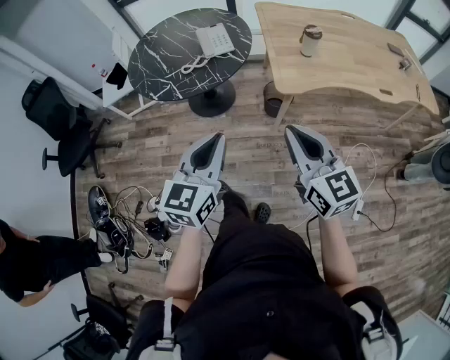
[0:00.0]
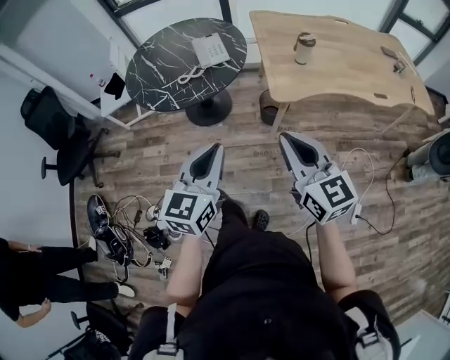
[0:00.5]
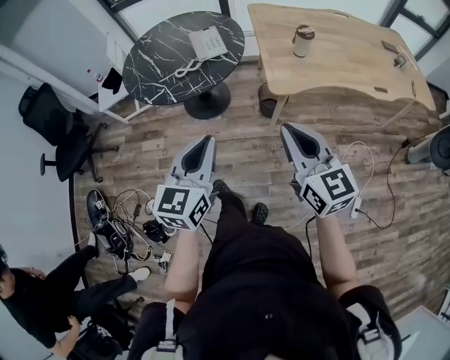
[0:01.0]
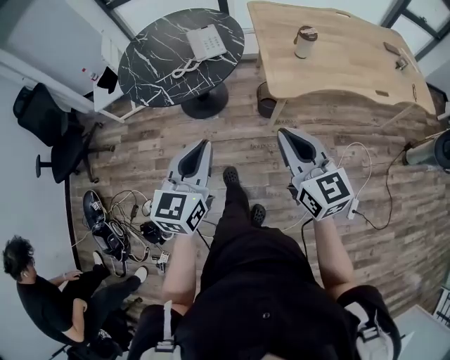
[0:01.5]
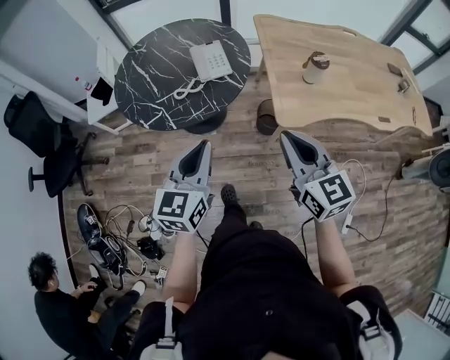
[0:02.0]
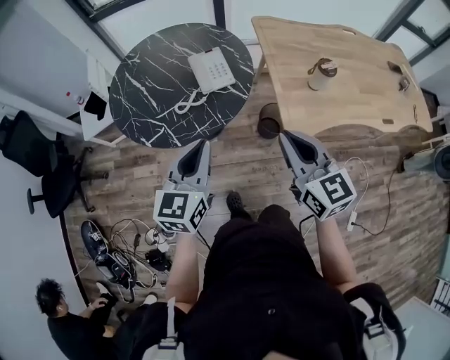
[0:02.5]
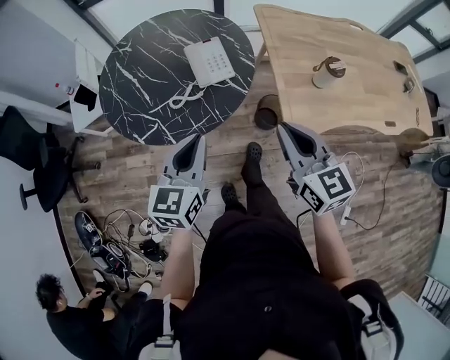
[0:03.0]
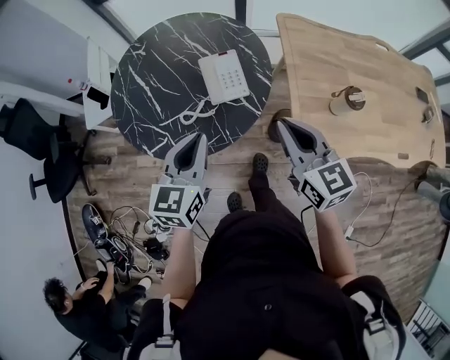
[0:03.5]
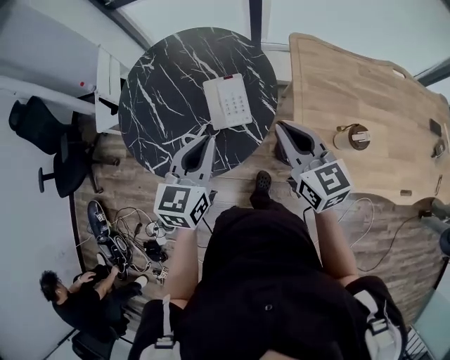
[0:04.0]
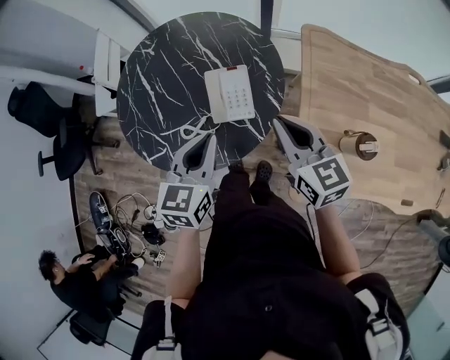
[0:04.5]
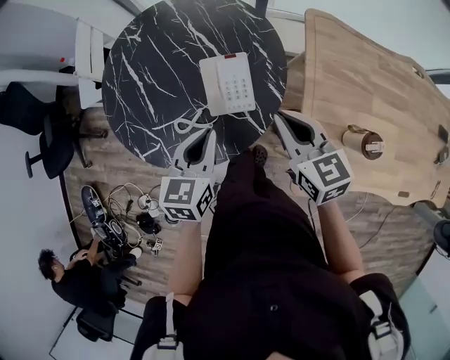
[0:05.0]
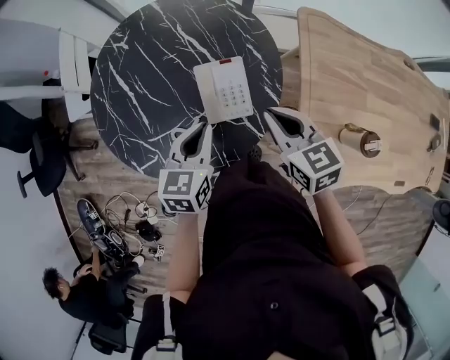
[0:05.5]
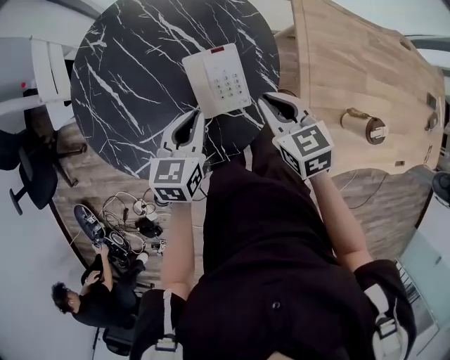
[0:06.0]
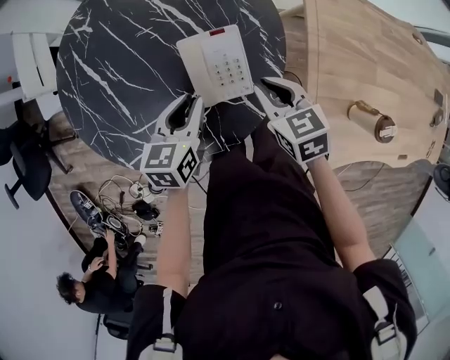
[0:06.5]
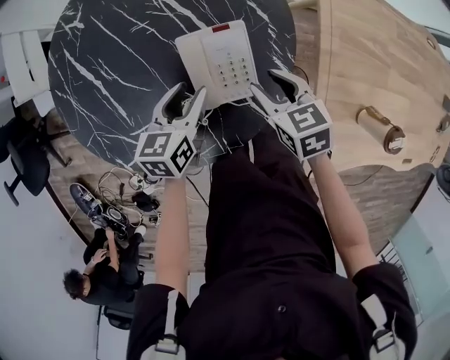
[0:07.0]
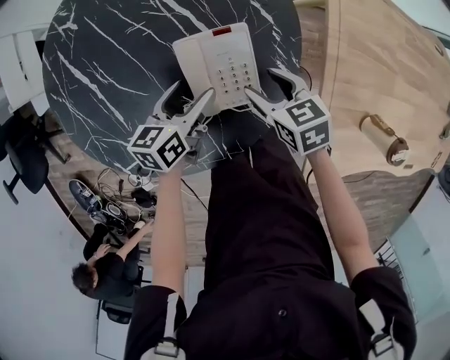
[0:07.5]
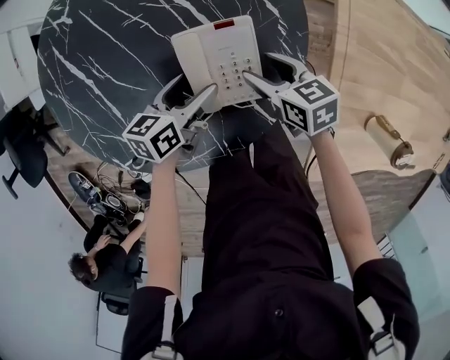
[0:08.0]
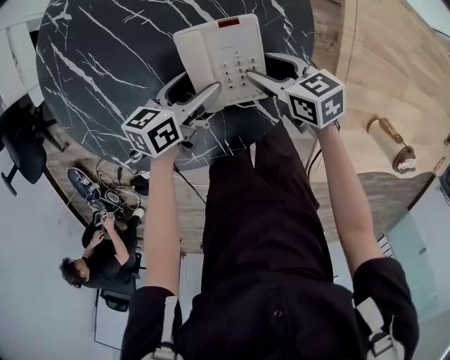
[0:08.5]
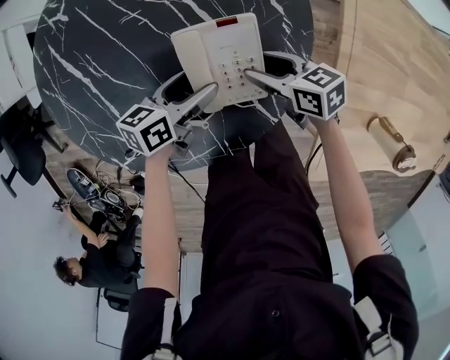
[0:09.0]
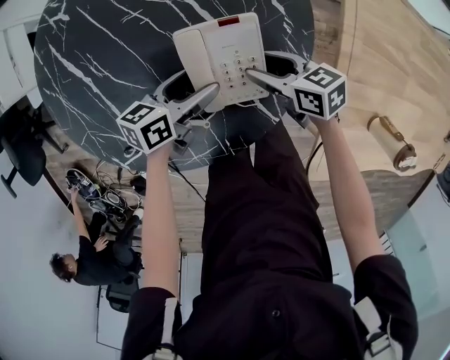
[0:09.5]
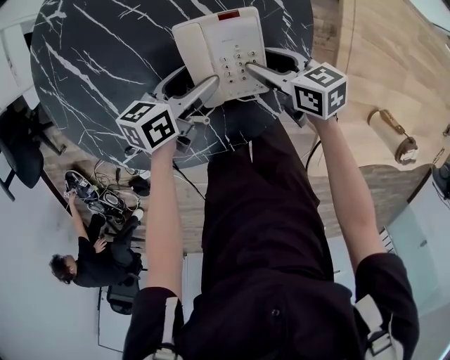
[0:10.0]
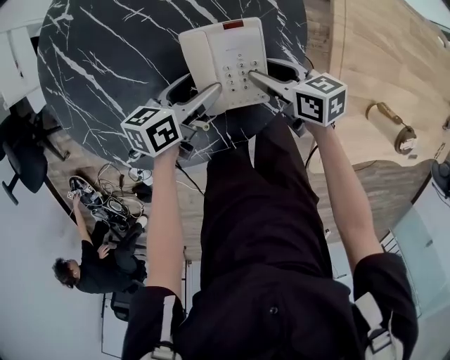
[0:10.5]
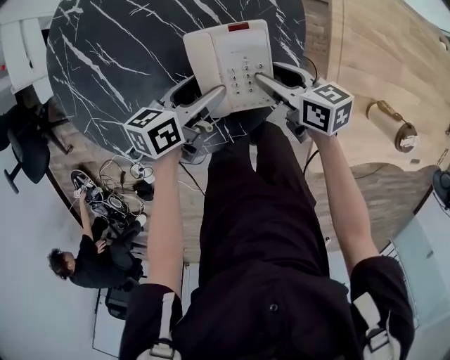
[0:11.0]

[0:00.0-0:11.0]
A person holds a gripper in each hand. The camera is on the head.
0.0 to 2.0 s: The two grippers go approximately 15 cm forward.
2.0 to 3.5 s: The two grippers go about 25 cm forward.
3.5 to 5.5 s: The grippers both shift forward and downward by about 20 cm. The right gripper changes its angle by some 20 degrees.
5.5 to 7.5 s: The left gripper travels downward and forward by approximately 20 cm, rotates about 30 degrees, and opens its fingers. Meanwhile the right gripper moves downward, some 20 cm, changes its angle by approximately 20 degrees, and opens up.
7.5 to 9.0 s: The right gripper ends up roughly 5 cm from where it was, and changes its angle by about 20 degrees.
9.0 to 11.0 s: The left gripper moves roughly 5 cm; the right gripper changes place by about 5 cm.

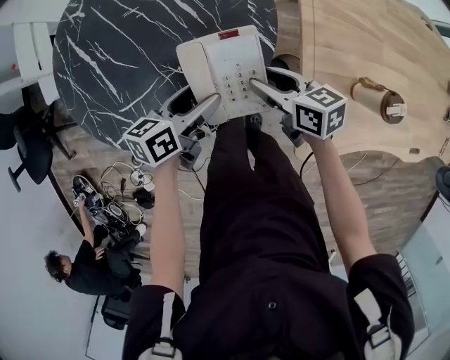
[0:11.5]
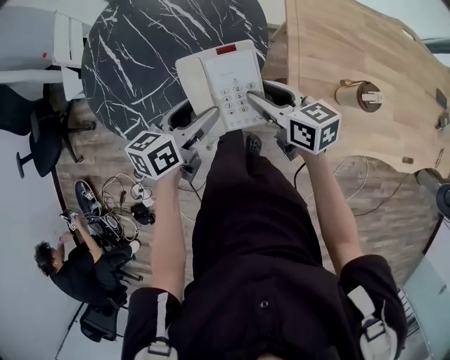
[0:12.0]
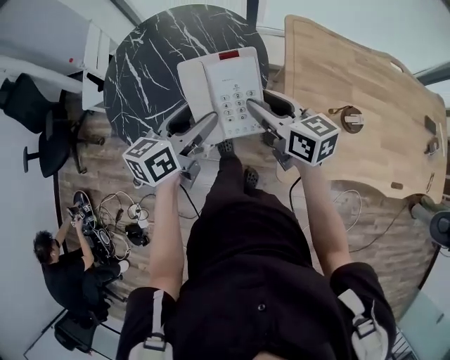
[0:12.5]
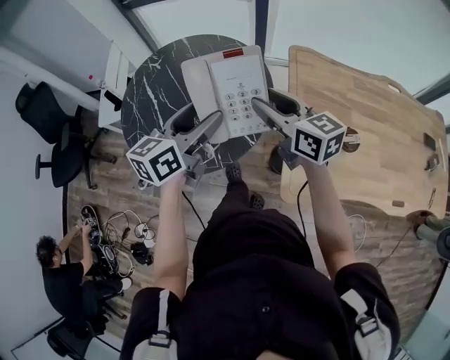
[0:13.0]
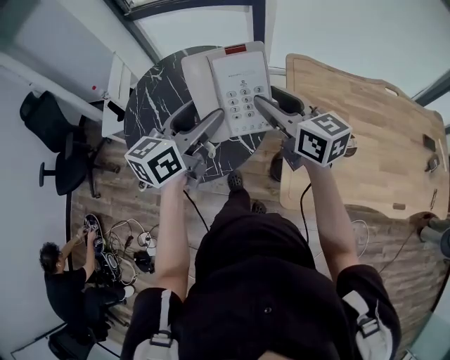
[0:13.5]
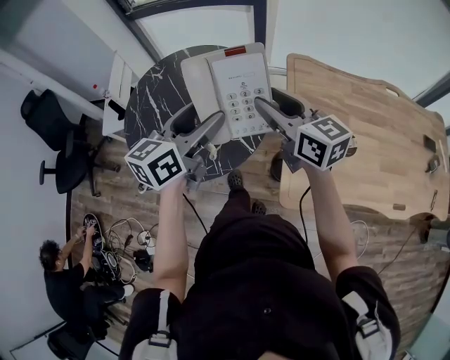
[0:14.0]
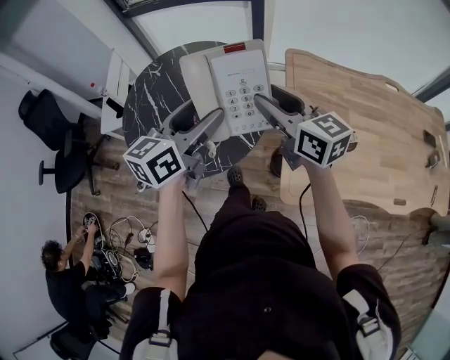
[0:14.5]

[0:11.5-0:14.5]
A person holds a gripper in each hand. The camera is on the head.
11.5 to 13.0 s: The grippers both shift upward by approximately 30 cm. The right gripper turns by roughly 30 degrees. Meanwhile the left gripper rotates approximately 30 degrees.
13.0 to 14.5 s: There are only small adjustments of the grippers.

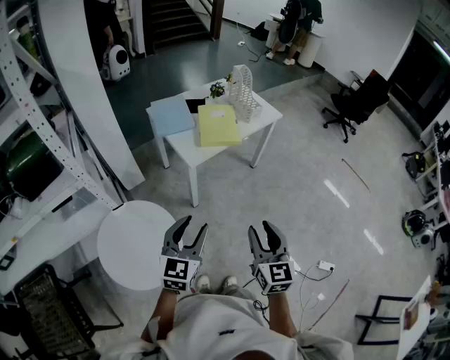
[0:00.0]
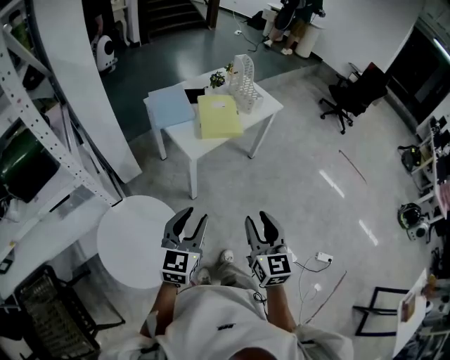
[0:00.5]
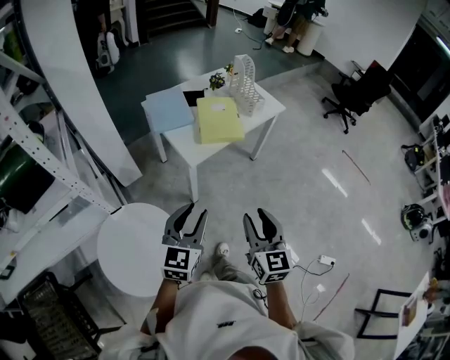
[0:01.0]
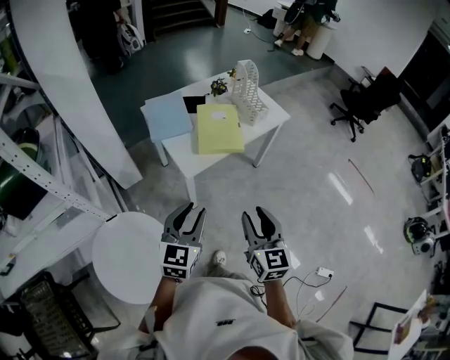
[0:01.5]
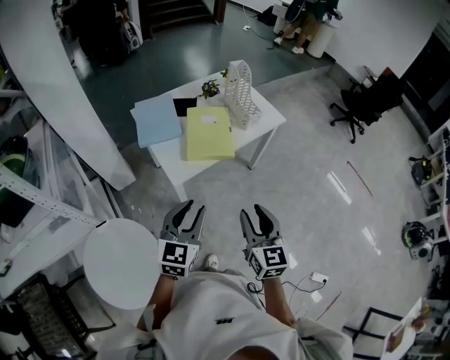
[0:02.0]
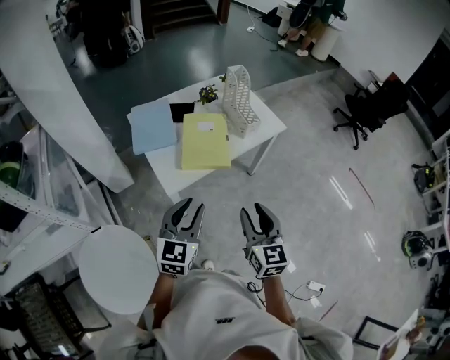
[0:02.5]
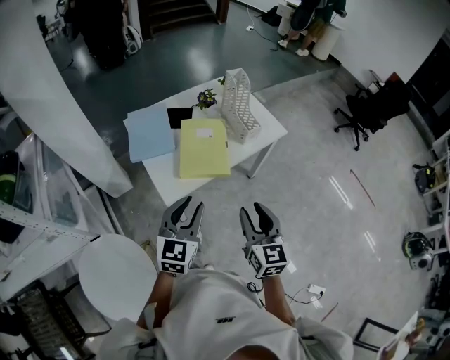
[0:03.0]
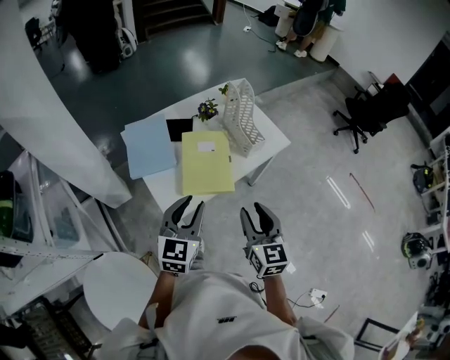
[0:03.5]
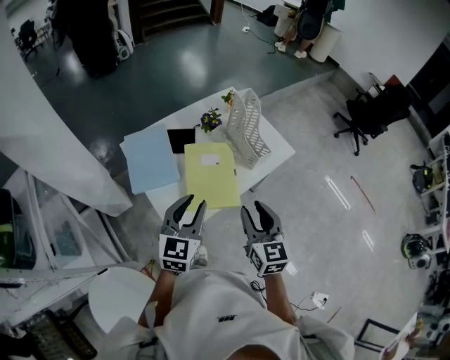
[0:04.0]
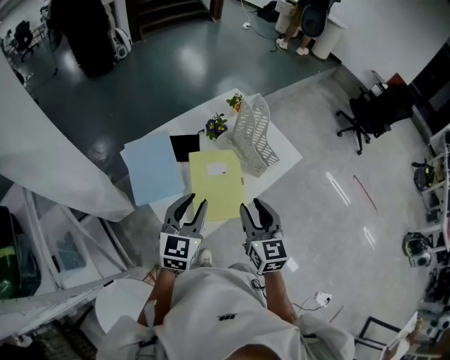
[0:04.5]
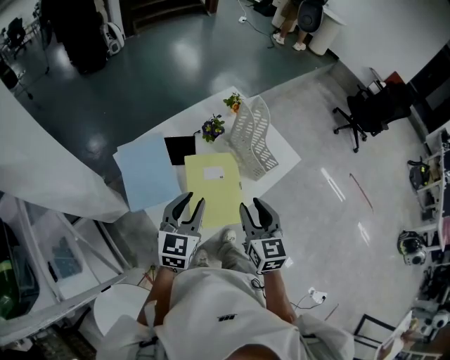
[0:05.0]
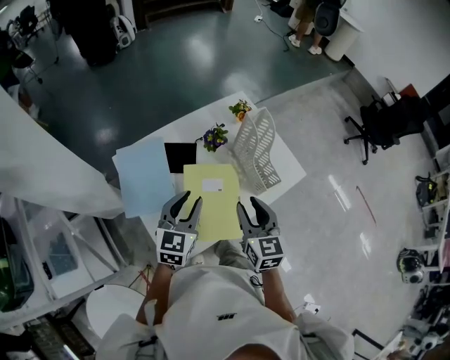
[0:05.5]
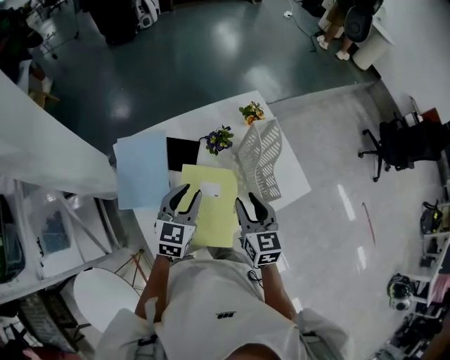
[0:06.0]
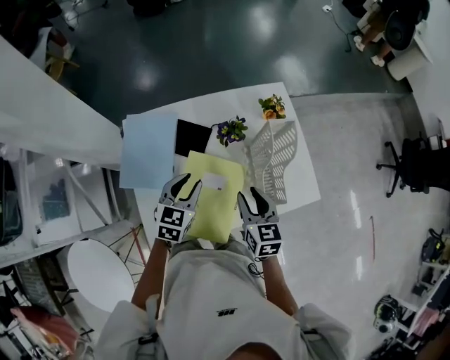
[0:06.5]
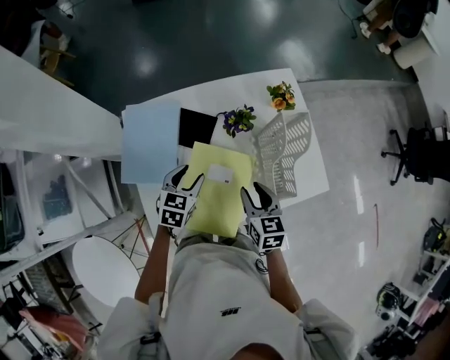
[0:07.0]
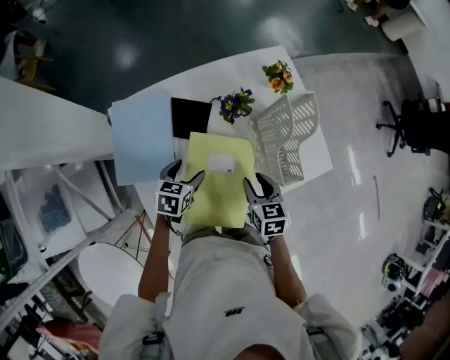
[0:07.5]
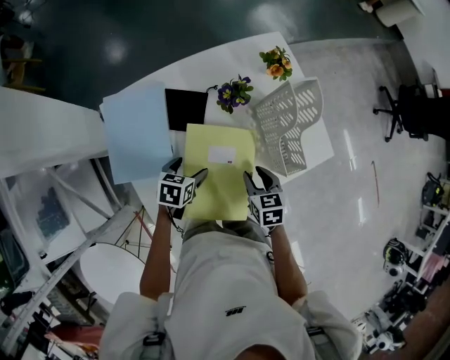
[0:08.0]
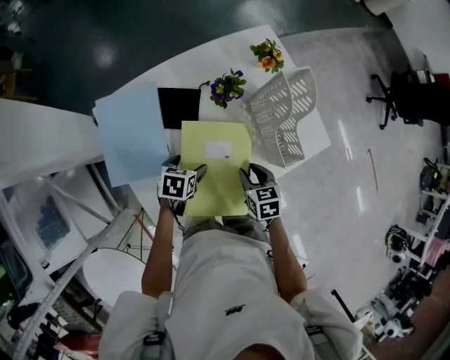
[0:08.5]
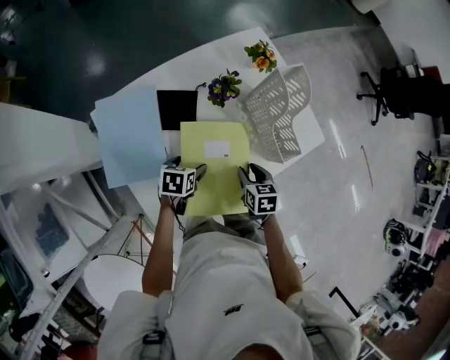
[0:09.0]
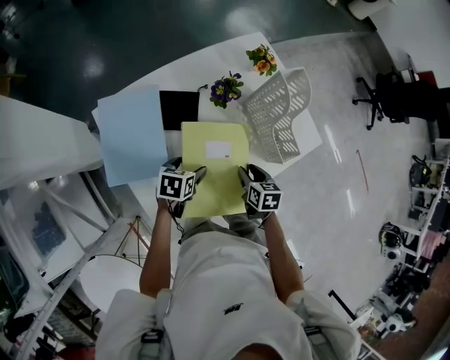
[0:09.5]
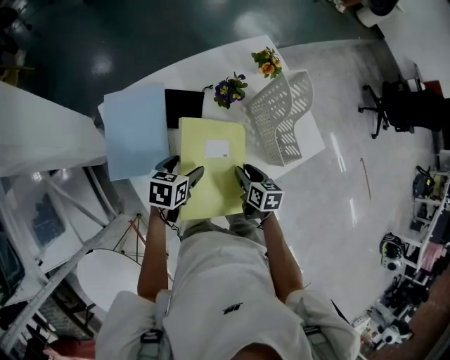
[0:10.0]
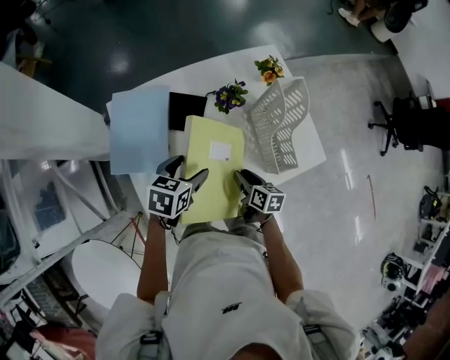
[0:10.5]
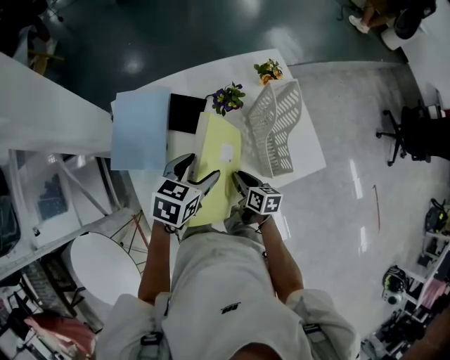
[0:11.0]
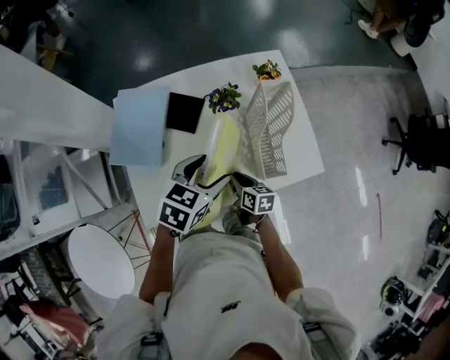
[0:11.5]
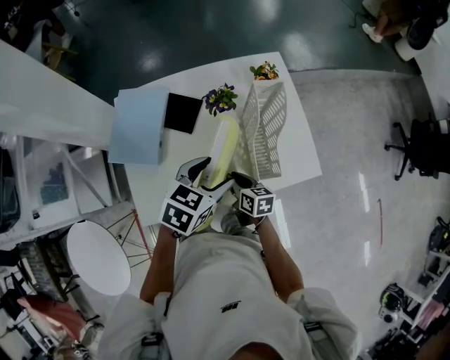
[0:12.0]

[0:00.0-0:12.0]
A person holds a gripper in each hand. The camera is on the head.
0.0 to 2.0 s: The two grippers go about 25 cm forward.
2.0 to 4.0 s: The grippers both shift forward by about 30 cm.
4.0 to 6.0 s: Both grippers travel together forward, some 25 cm.
6.0 to 8.0 s: Both grippers travel together downward, about 20 cm. The left gripper changes its angle by roughly 40 degrees, and opens its fingers. Meanwhile the right gripper rotates roughly 30 degrees.
8.0 to 10.0 s: The right gripper changes its angle by some 20 degrees, while the left gripper goes some 5 cm upward.
10.0 to 12.0 s: The right gripper turns by about 20 degrees, and closes. The left gripper travels to the right and upward by about 25 cm.

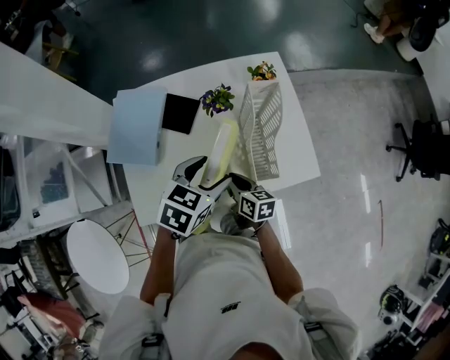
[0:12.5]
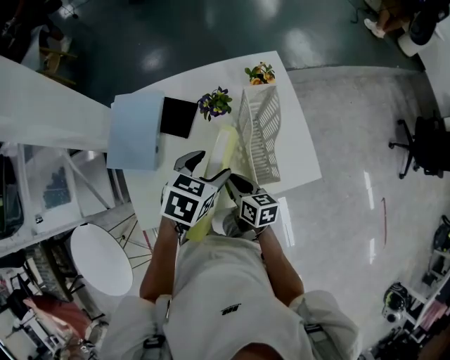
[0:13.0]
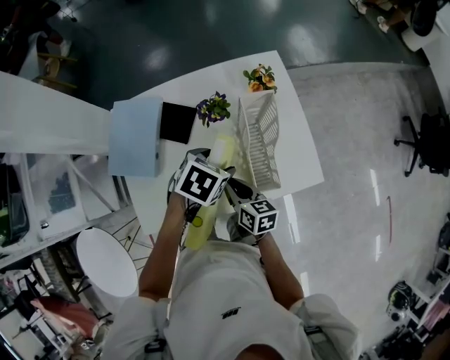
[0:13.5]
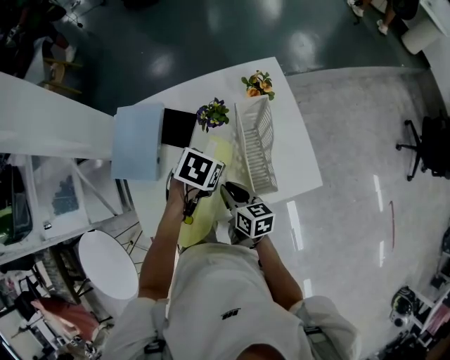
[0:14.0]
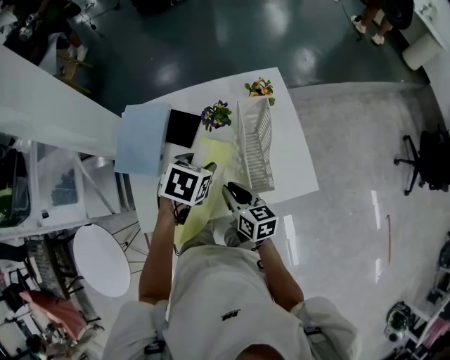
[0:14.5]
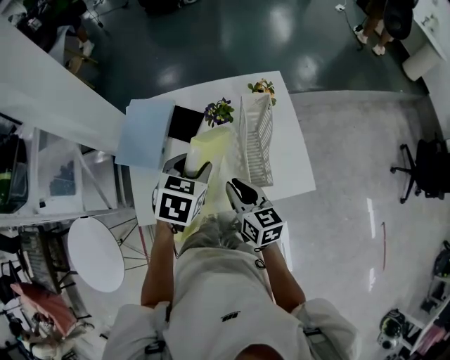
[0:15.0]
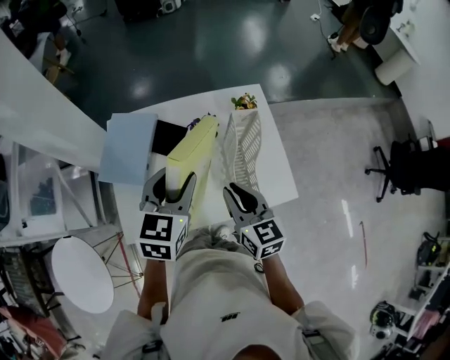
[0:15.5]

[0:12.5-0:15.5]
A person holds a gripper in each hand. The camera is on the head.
12.5 to 14.0 s: The left gripper moves downward and forward, some 10 cm, and changes its angle by approximately 30 degrees.
14.0 to 15.5 s: The grippers both shift upward by about 20 cm. The right gripper changes its angle by roughly 30 degrees; the left gripper angles its fingers upward, by about 40 degrees.
